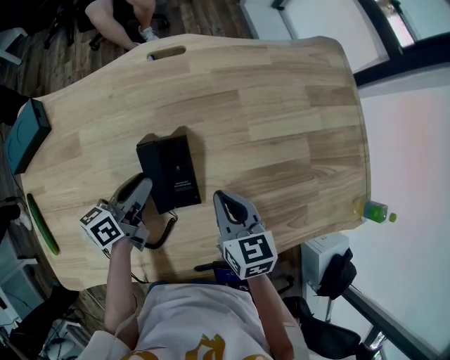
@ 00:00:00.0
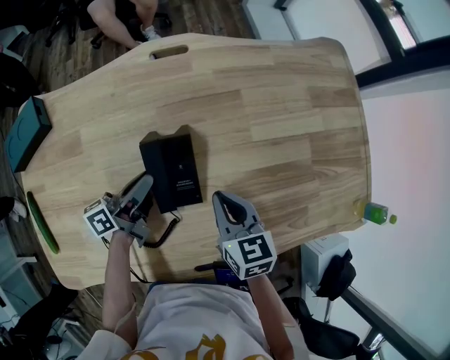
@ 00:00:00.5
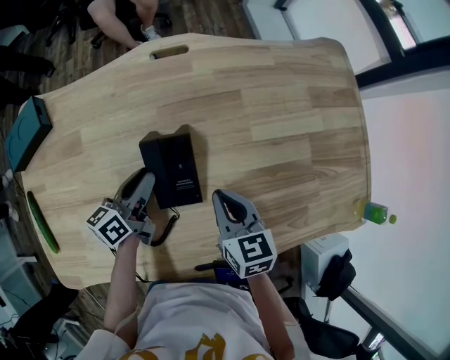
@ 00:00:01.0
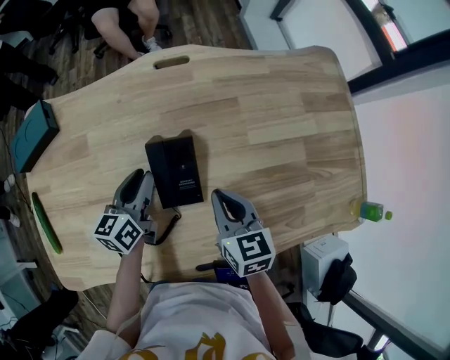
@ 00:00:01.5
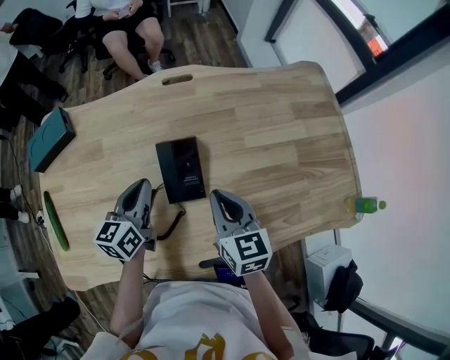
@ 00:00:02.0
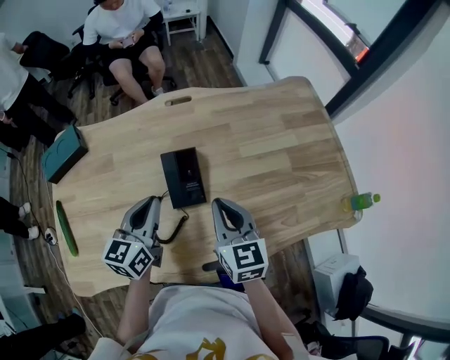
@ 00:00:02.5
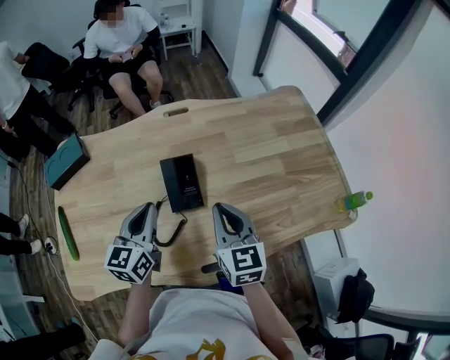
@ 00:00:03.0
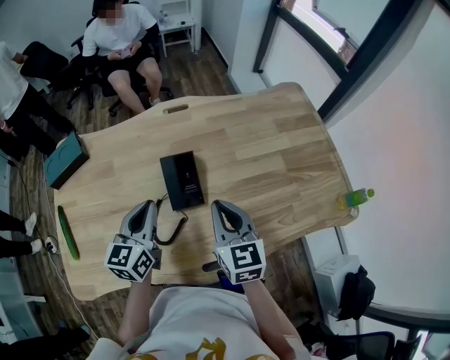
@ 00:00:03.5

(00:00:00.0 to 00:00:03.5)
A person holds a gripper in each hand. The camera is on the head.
00:00:00.0 - 00:00:02.0: The two grippers go about 5 cm upward. The left gripper changes its angle by some 30 degrees, and closes.
00:00:02.0 - 00:00:03.5: The right gripper goes some 5 cm upward, while the left gripper moves upward and backward, some 10 cm.

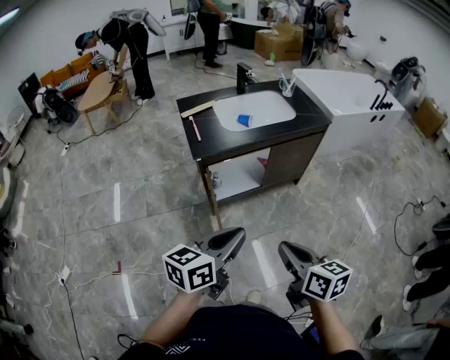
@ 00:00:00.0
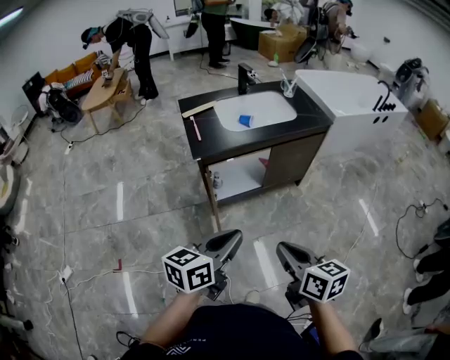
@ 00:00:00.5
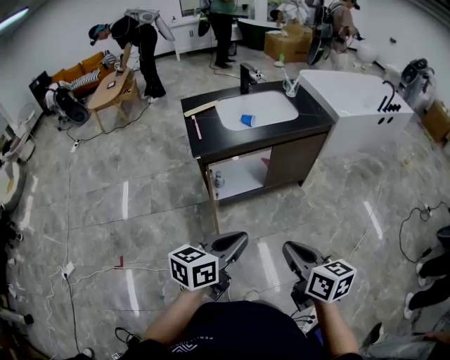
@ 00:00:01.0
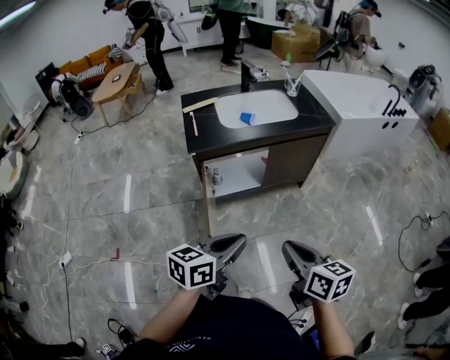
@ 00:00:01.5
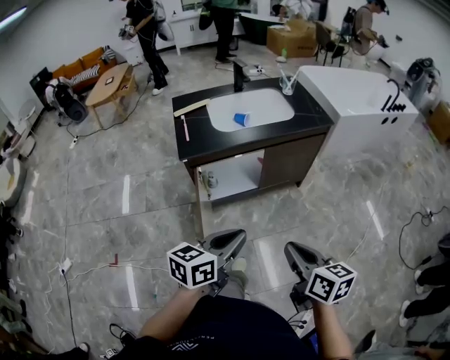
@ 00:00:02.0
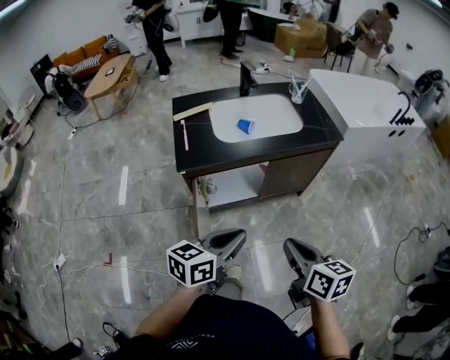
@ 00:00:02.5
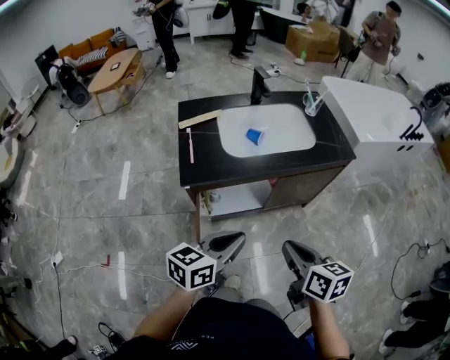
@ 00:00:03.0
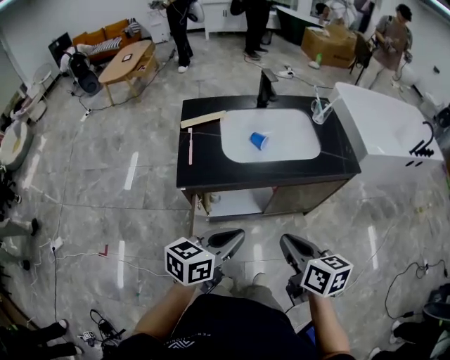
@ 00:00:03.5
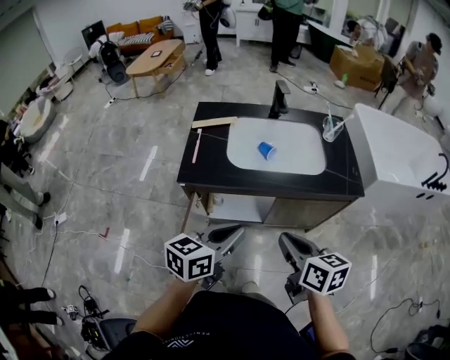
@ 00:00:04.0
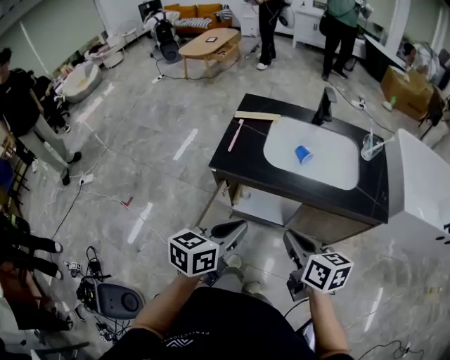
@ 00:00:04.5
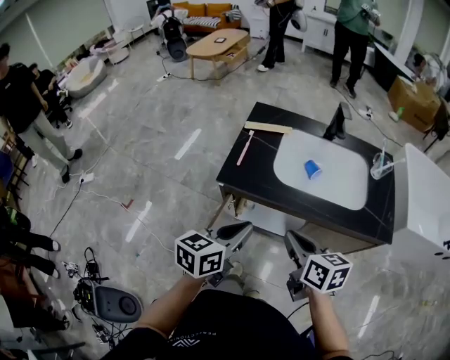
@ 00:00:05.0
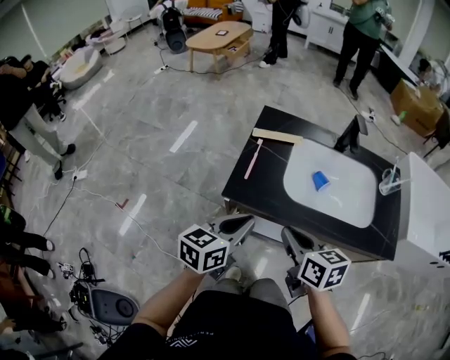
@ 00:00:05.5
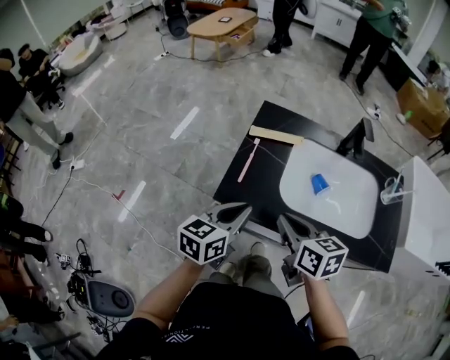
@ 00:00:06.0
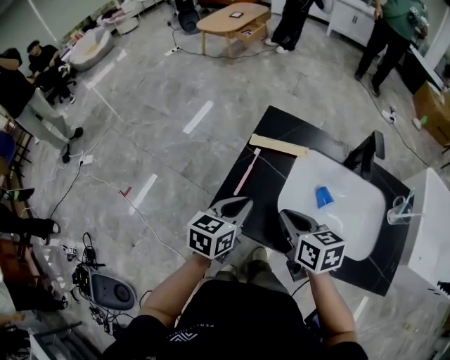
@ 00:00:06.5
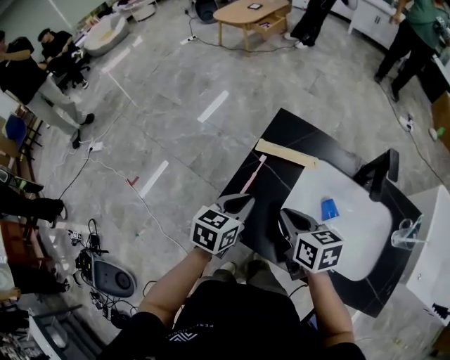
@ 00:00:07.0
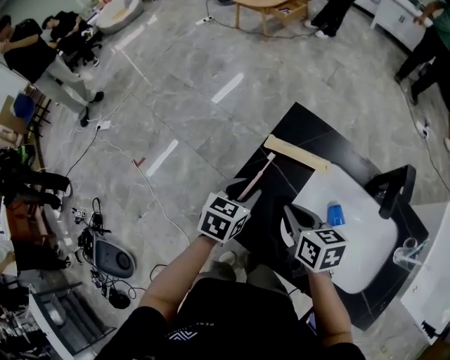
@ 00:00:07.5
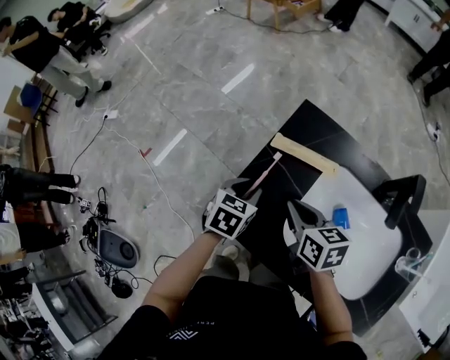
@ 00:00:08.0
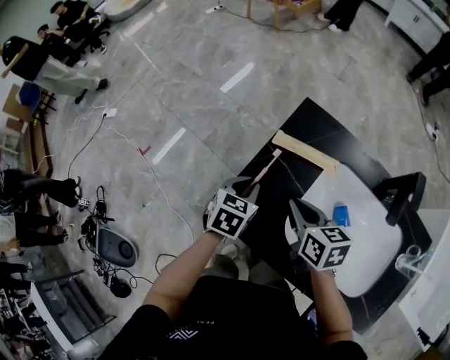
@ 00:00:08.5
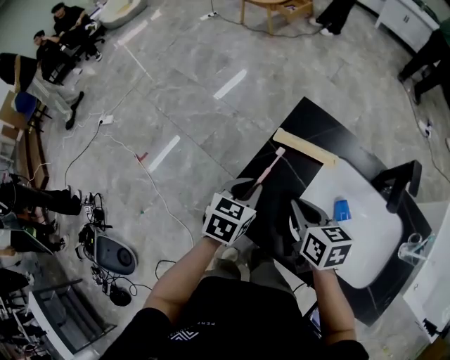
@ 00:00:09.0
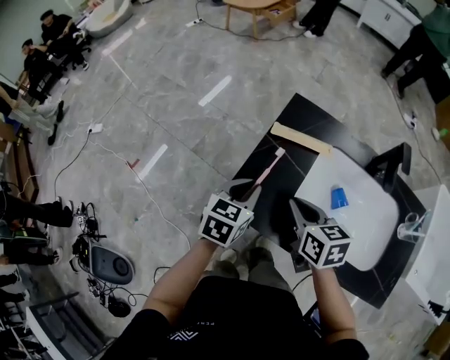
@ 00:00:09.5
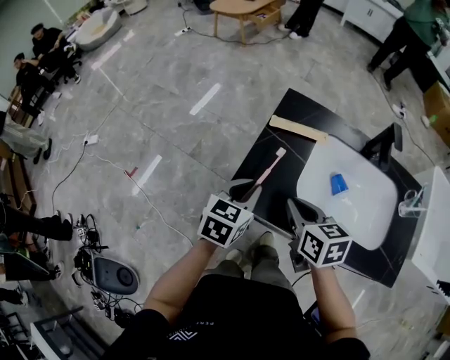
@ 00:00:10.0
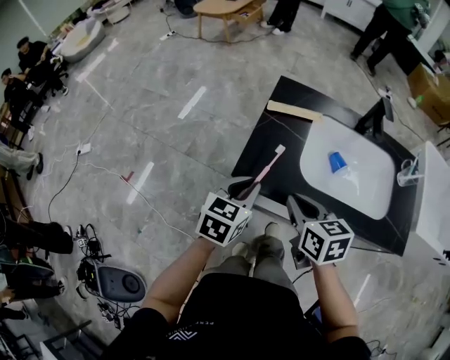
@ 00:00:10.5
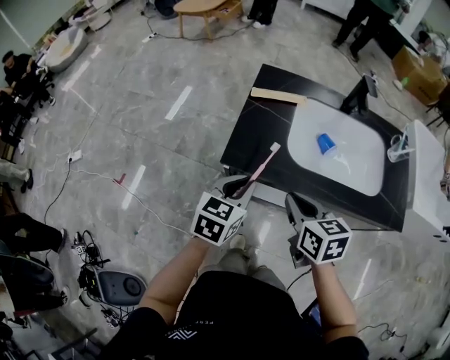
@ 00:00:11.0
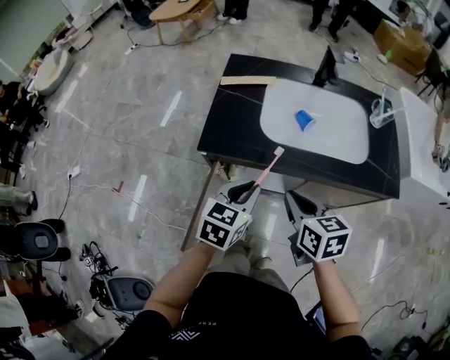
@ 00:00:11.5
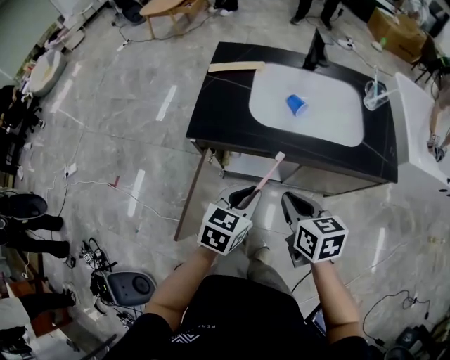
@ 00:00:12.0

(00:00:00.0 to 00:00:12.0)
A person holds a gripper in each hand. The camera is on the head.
00:00:00.0 - 00:00:02.0: The left gripper shifts roughly 10 cm to the right. Meanwhile the right gripper is displaced to the right and forward by roughly 10 cm.
00:00:02.0 - 00:00:04.0: The two grippers go about 25 cm forward. The right gripper changes its angle by some 20 degrees.
00:00:04.0 - 00:00:06.0: The two grippers go roughly 25 cm forward and to the left. The left gripper swivels about 20 degrees.
00:00:06.0 - 00:00:08.0: The grippers both shift forward and downward by some 20 cm. The left gripper angles its fingers downward, by about 30 degrees, and opens up.
00:00:08.0 - 00:00:10.0: The left gripper shifts approximately 15 cm backward and upward, and changes its angle by about 20 degrees. The right gripper travels backward by approximately 10 cm.
00:00:10.0 - 00:00:12.0: Both grippers travel together backward and to the right, roughly 25 cm.

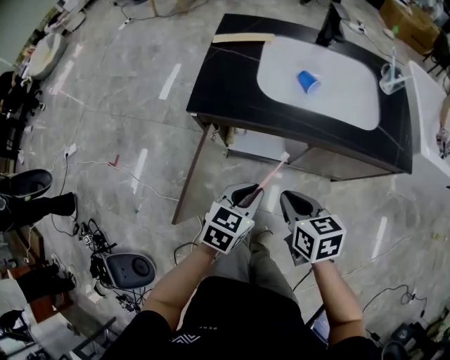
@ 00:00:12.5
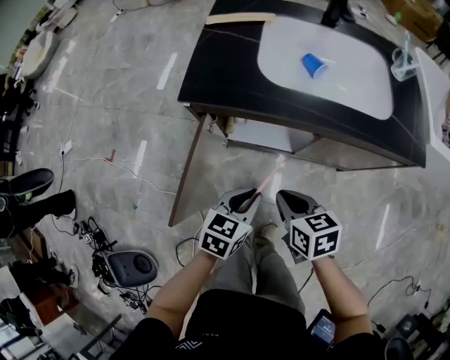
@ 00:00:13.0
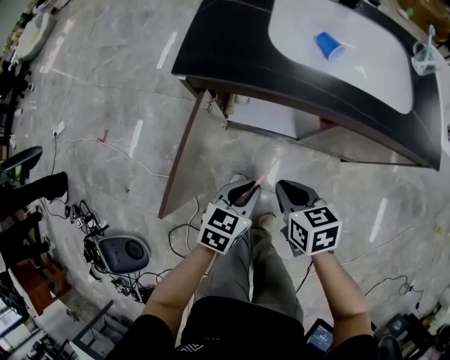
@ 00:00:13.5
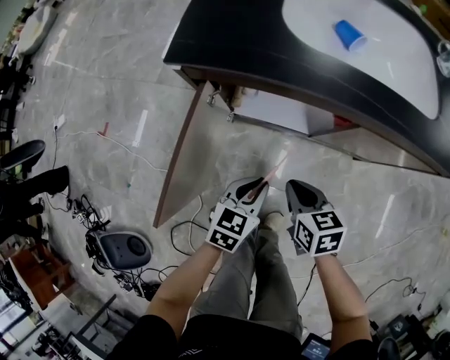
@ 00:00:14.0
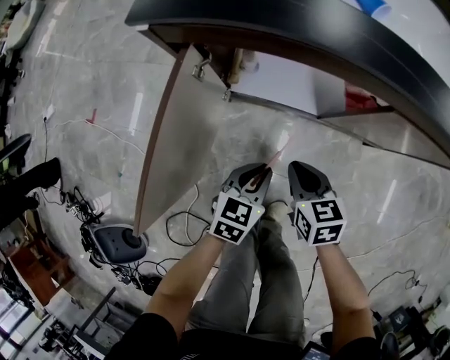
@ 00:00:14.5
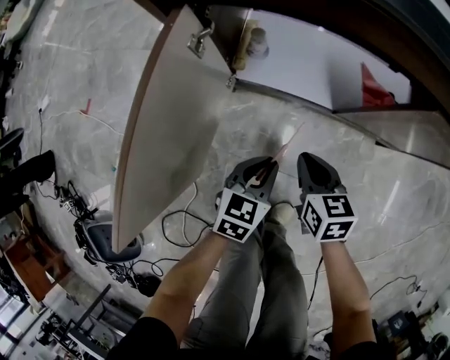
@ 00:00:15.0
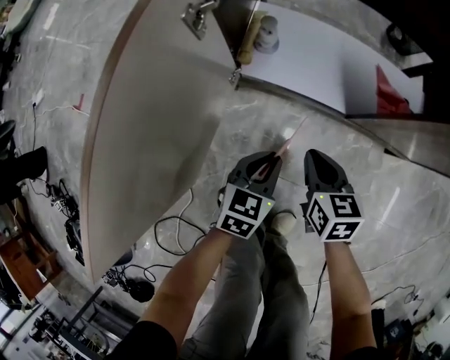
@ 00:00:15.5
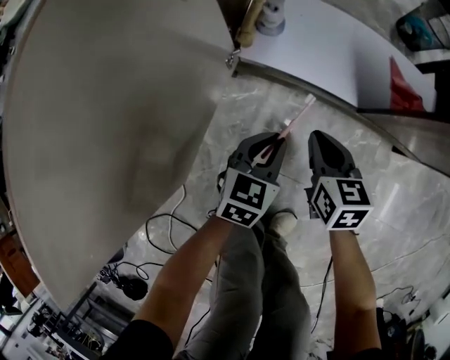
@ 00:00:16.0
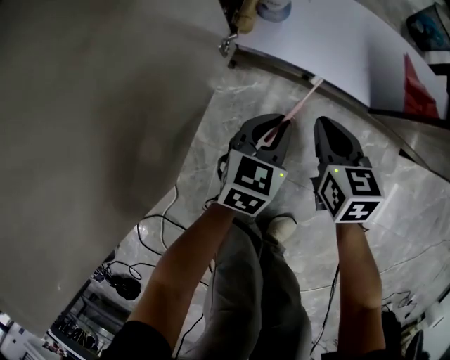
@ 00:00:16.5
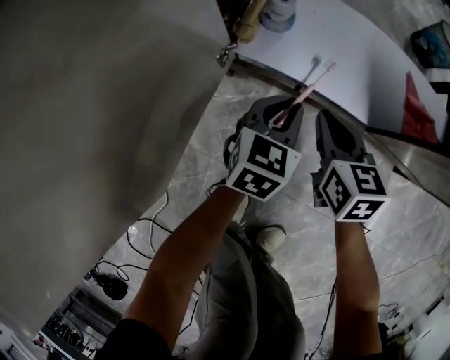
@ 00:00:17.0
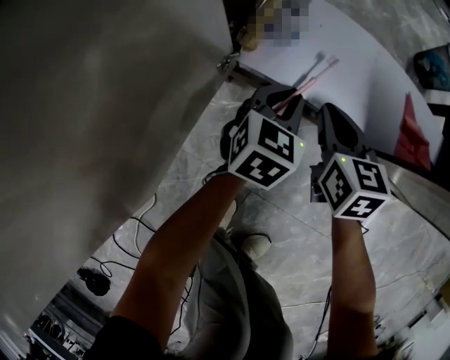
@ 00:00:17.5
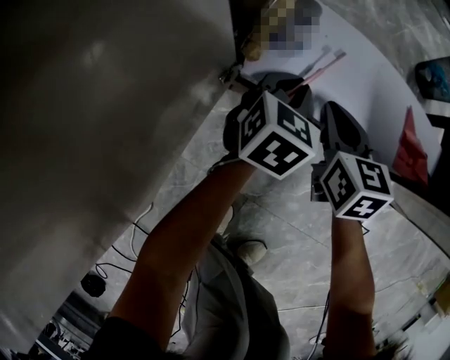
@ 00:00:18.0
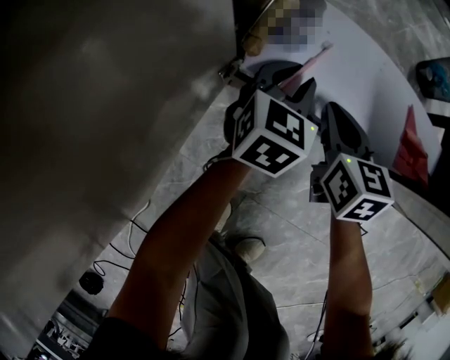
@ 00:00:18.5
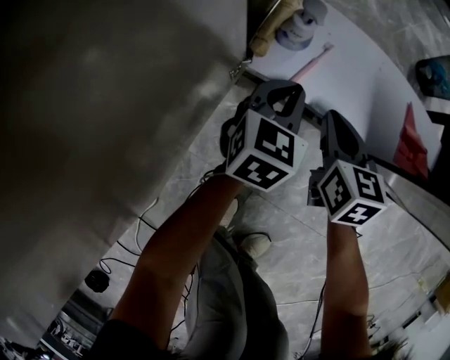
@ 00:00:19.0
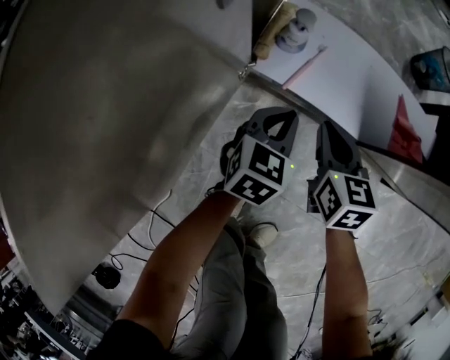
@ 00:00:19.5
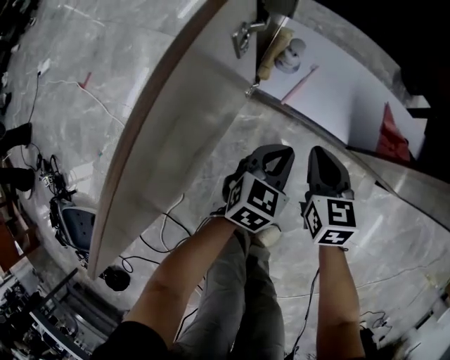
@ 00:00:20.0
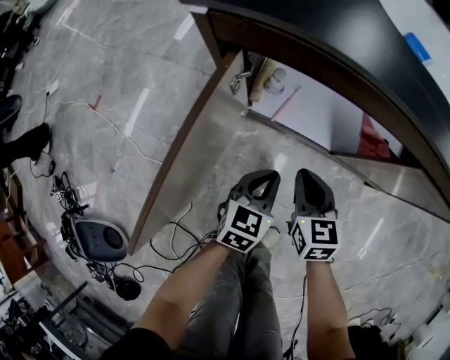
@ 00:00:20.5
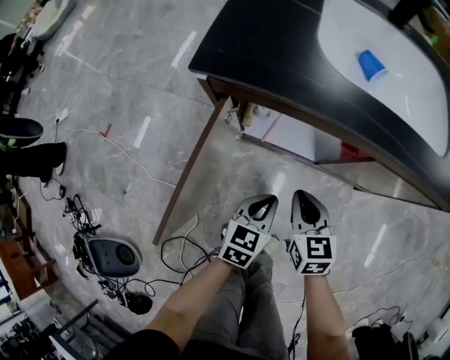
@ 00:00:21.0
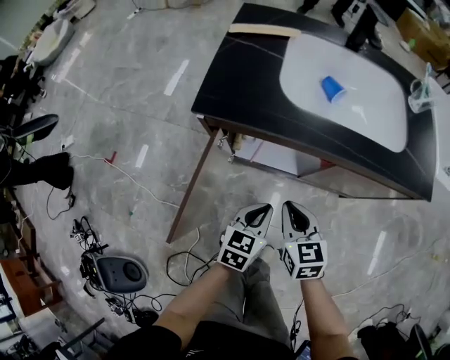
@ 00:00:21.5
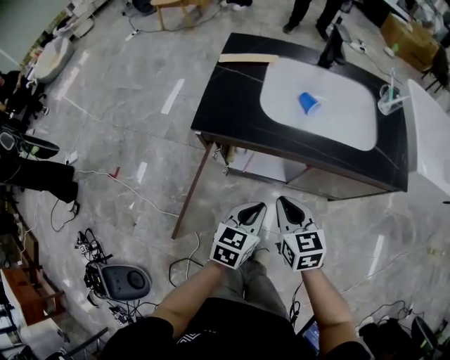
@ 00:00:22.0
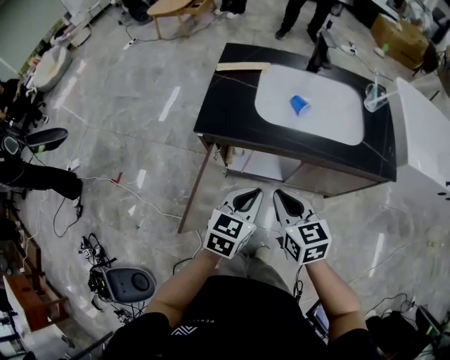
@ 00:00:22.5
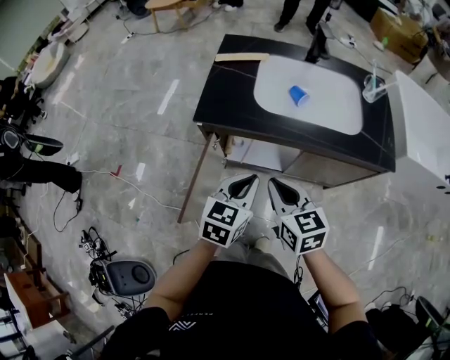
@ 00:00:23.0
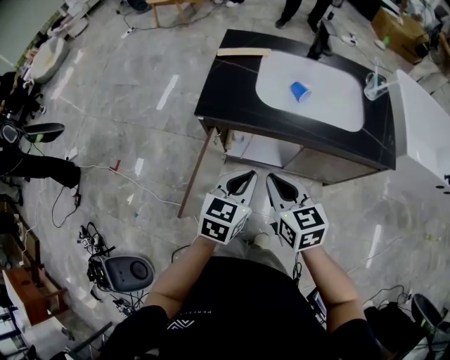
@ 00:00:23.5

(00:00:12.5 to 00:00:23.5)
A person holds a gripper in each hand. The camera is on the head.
00:00:12.5 - 00:00:14.5: The grippers both shift downward by some 30 cm.
00:00:14.5 - 00:00:16.0: The grippers both shift downward by roughly 20 cm.
00:00:16.0 - 00:00:18.0: The grippers both shift forward by about 20 cm.
00:00:18.0 - 00:00:20.0: Both grippers move backward and upward, some 15 cm.
00:00:20.0 - 00:00:21.5: Both grippers travel together upward, approximately 25 cm.
00:00:21.5 - 00:00:23.5: Both grippers travel together upward, some 20 cm.
